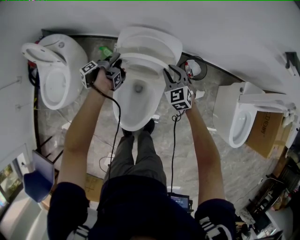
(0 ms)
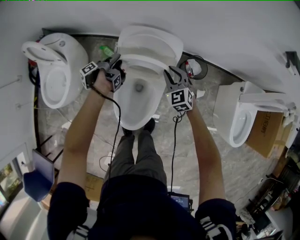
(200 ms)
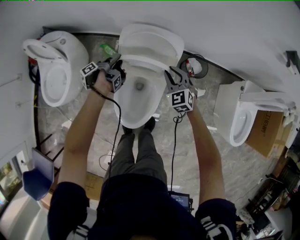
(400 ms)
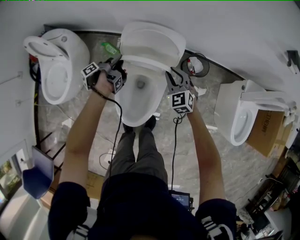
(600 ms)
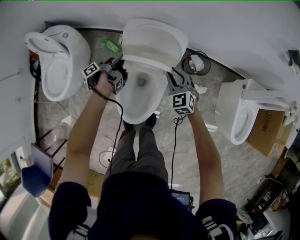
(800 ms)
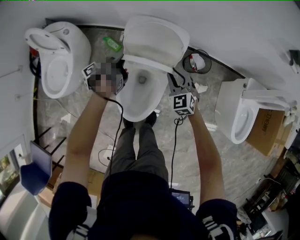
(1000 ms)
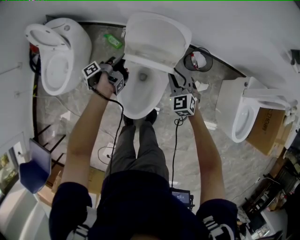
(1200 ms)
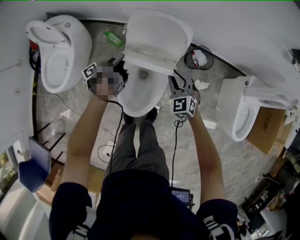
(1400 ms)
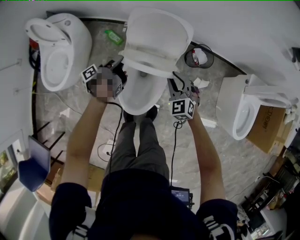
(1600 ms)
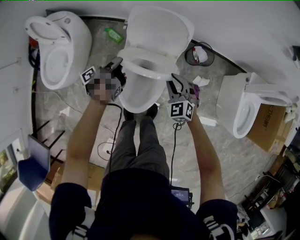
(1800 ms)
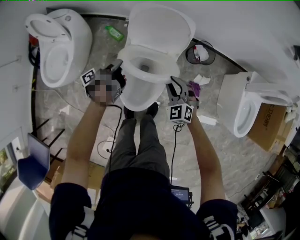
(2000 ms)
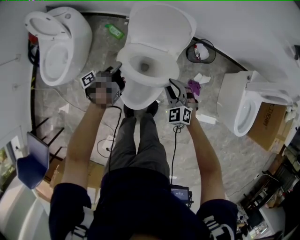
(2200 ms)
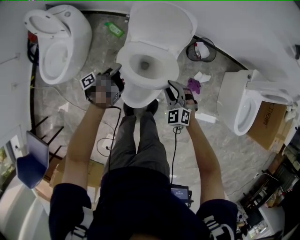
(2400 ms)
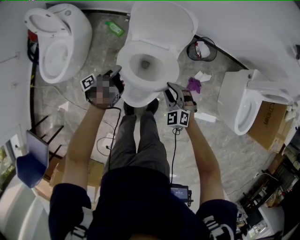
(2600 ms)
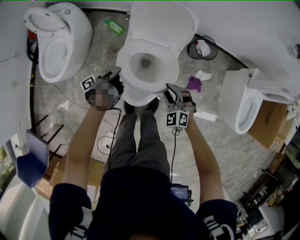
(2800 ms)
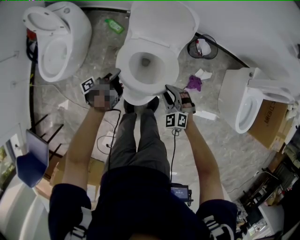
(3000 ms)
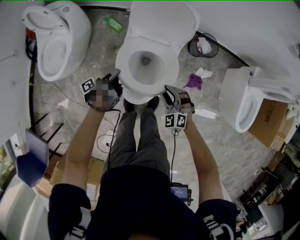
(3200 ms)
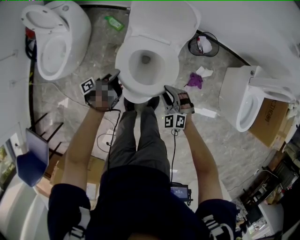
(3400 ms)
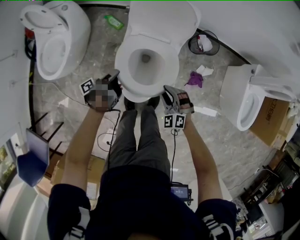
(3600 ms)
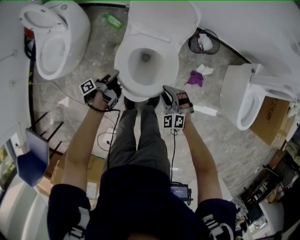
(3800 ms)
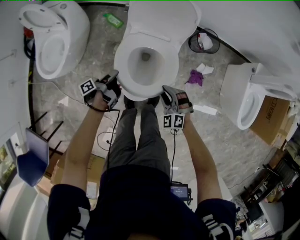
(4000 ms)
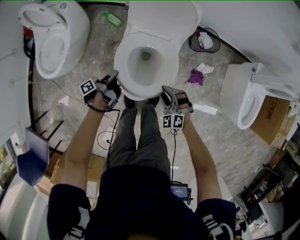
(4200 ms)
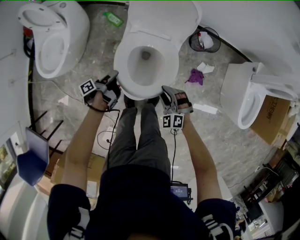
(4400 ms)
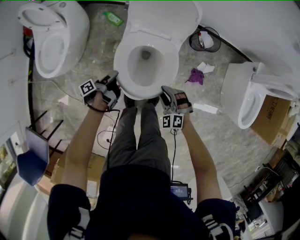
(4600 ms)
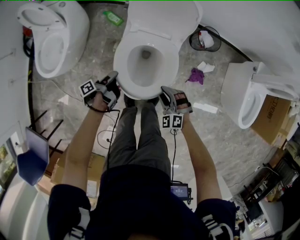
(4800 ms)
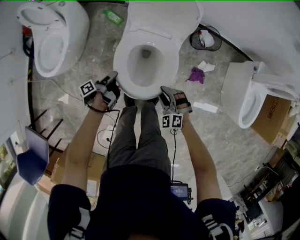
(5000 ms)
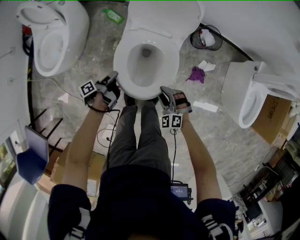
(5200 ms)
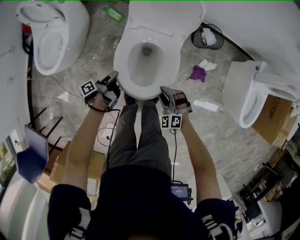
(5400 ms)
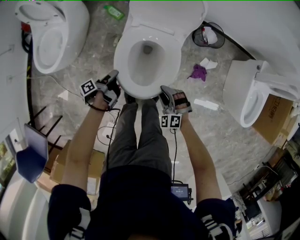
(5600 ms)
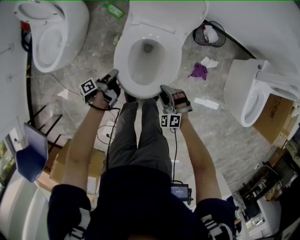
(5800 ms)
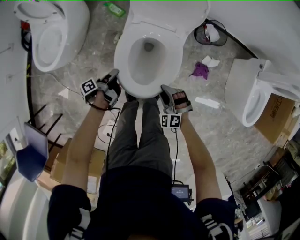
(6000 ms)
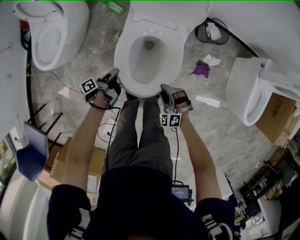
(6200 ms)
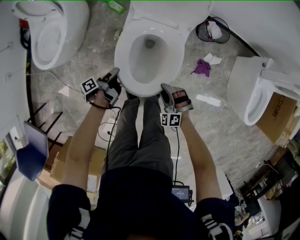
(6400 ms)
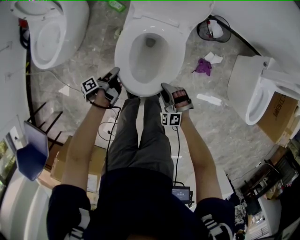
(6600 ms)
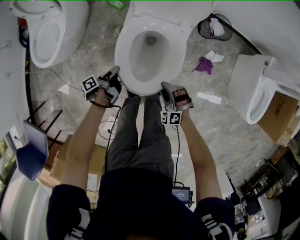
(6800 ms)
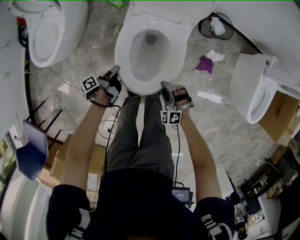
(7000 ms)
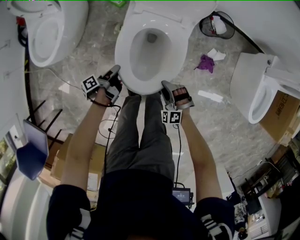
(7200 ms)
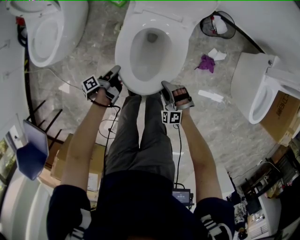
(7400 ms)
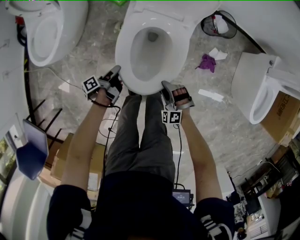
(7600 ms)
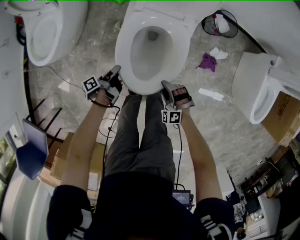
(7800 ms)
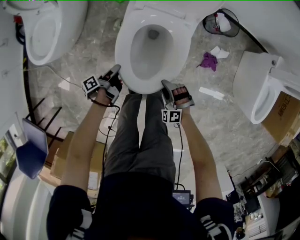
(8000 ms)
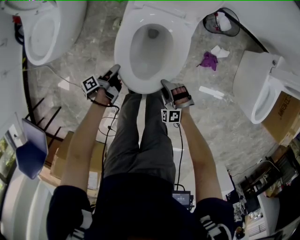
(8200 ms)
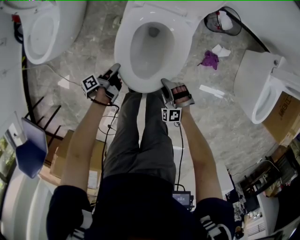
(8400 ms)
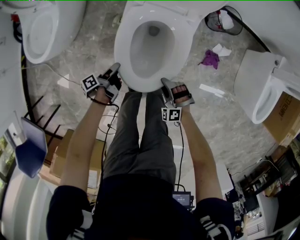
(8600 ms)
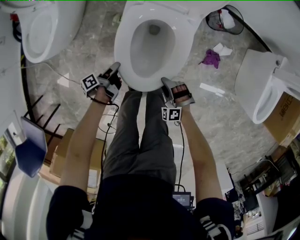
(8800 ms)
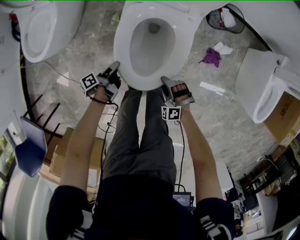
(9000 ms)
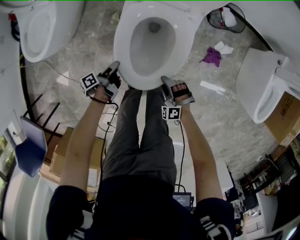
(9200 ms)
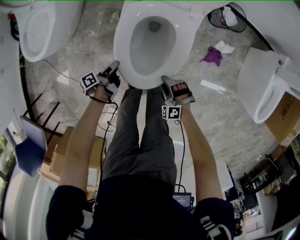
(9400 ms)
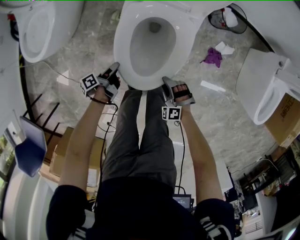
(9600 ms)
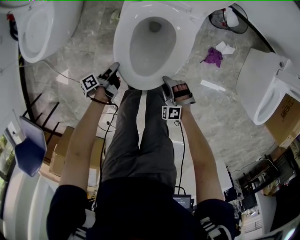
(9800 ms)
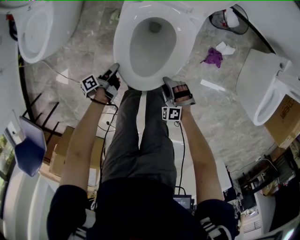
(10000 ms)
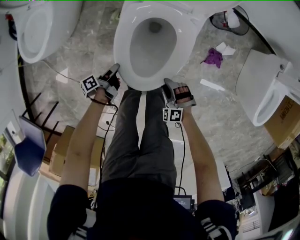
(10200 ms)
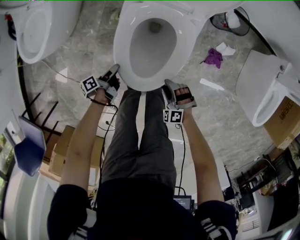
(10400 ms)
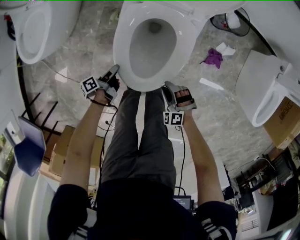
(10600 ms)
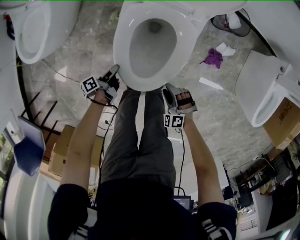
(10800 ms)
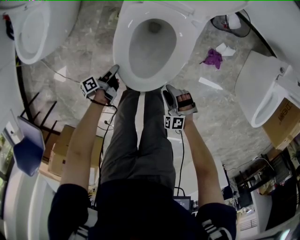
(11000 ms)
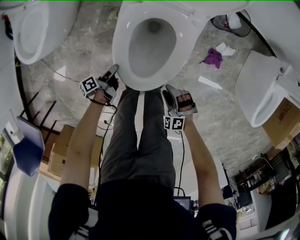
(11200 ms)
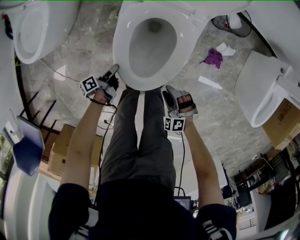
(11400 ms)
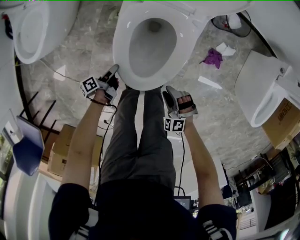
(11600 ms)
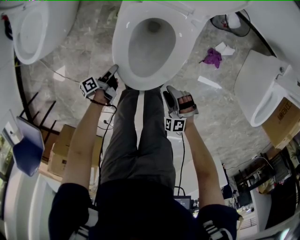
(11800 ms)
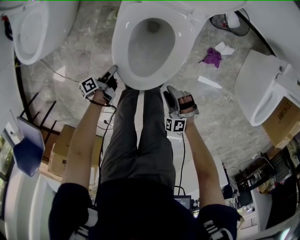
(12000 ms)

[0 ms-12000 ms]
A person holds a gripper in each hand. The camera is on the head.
0 ms to 1600 ms: The right gripper changes place by roughly 15 cm.
1600 ms to 3000 ms: The right gripper moves approximately 15 cm.
3000 ms to 4400 ms: The right gripper moves about 5 cm.
4400 ms to 6000 ms: The right gripper moves downward, approximately 5 cm.
6000 ms to 7600 ms: The right gripper heads downward, covering some 10 cm.
7600 ms to 9000 ms: The right gripper travels downward by roughly 5 cm.

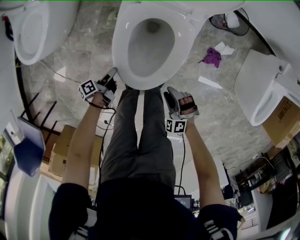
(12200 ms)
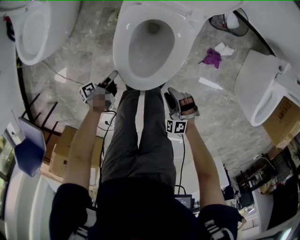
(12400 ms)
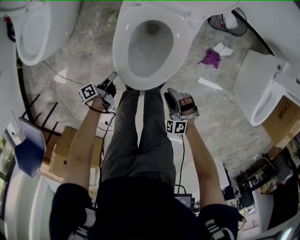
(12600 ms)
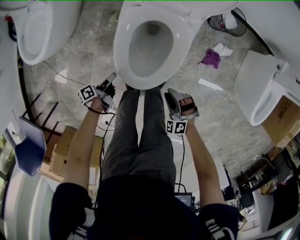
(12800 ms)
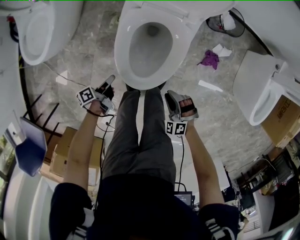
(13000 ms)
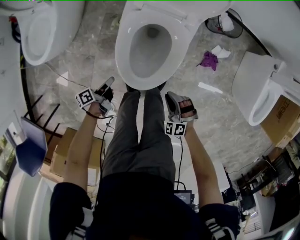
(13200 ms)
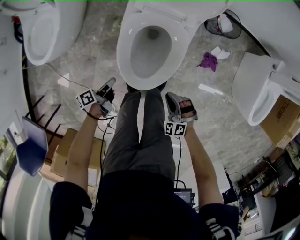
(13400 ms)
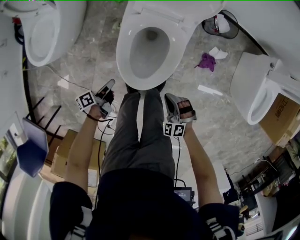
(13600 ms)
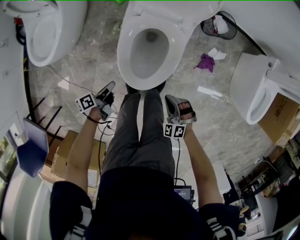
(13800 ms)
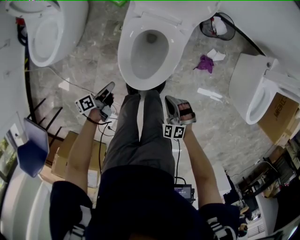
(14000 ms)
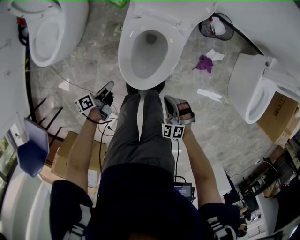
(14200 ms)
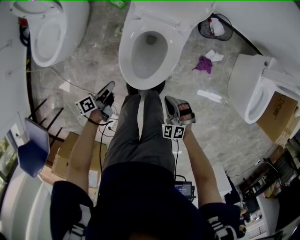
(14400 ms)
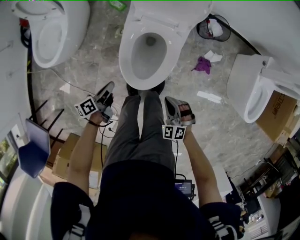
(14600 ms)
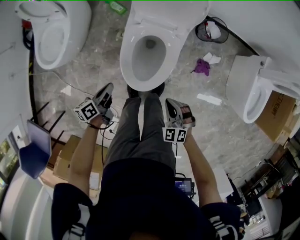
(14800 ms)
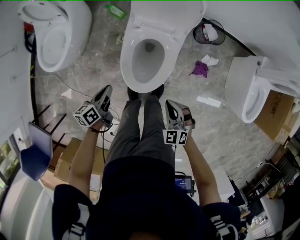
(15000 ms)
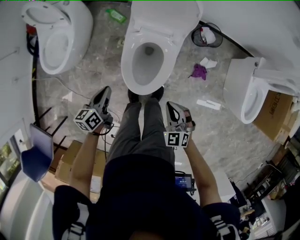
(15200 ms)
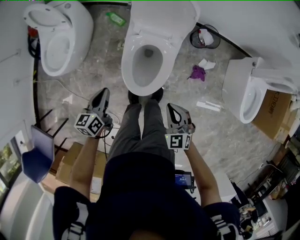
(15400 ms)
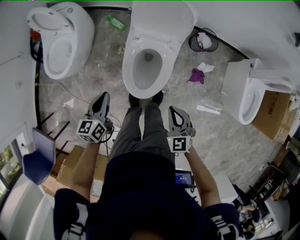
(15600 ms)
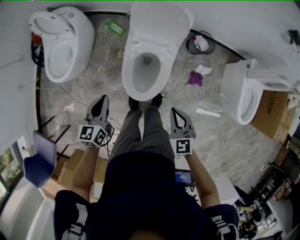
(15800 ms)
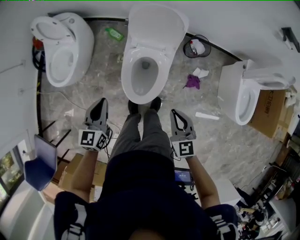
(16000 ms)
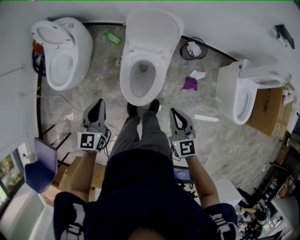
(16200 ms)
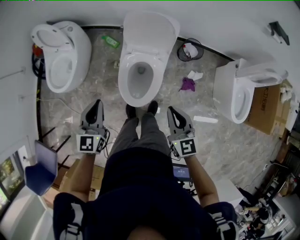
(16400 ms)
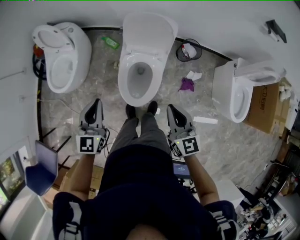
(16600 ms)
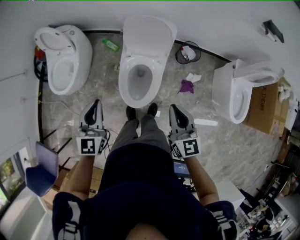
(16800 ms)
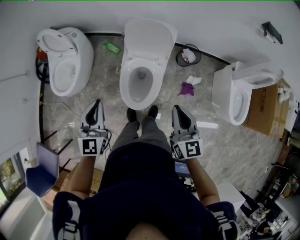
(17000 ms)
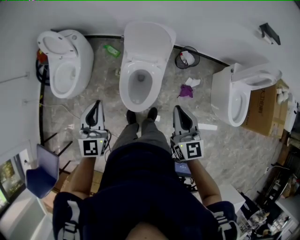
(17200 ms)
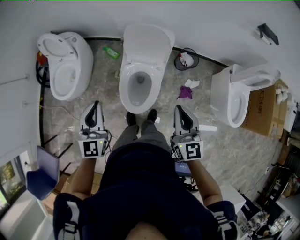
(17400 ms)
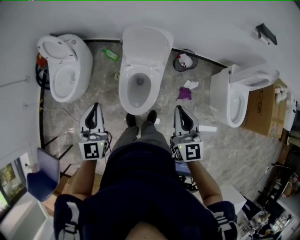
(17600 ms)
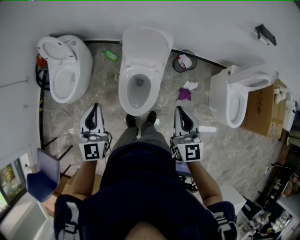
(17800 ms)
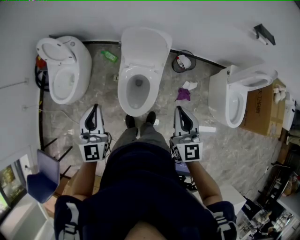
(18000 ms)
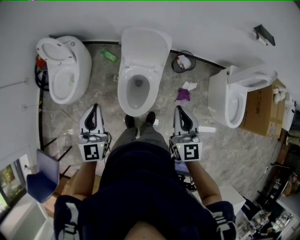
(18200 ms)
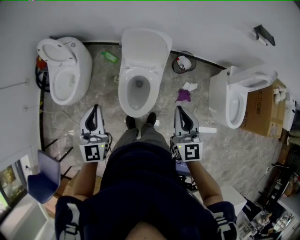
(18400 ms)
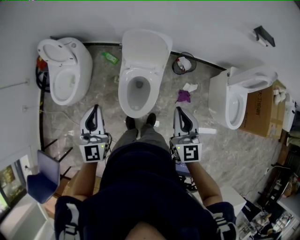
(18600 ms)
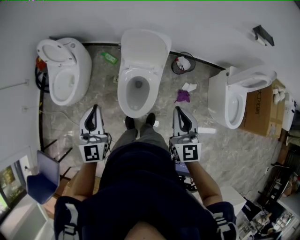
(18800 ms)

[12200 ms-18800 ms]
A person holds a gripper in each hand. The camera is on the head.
12200 ms to 13800 ms: The right gripper travels upward by roughly 10 cm, and closes up.
13800 ms to 15400 ms: The right gripper travels upward by about 20 cm, and swivels some 30 degrees.
15400 ms to 17200 ms: The right gripper heads upward, covering some 30 cm, and rotates about 40 degrees.

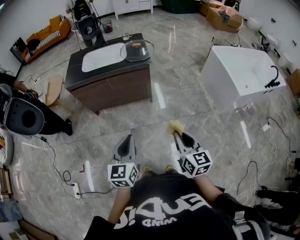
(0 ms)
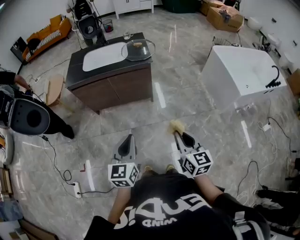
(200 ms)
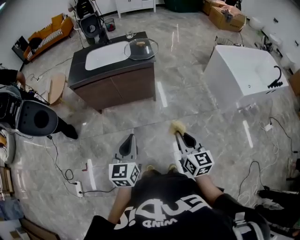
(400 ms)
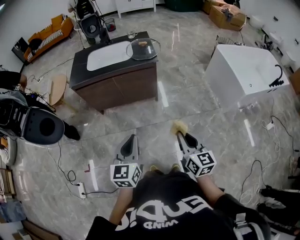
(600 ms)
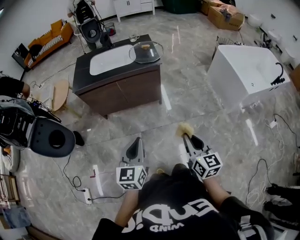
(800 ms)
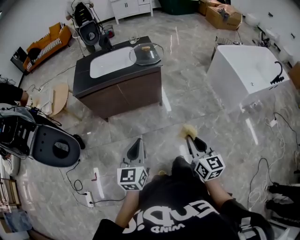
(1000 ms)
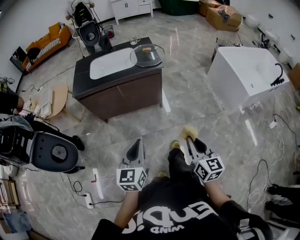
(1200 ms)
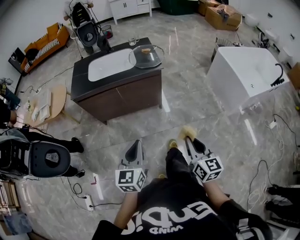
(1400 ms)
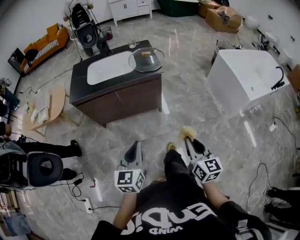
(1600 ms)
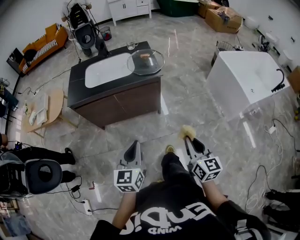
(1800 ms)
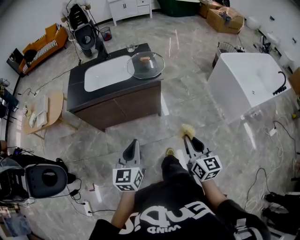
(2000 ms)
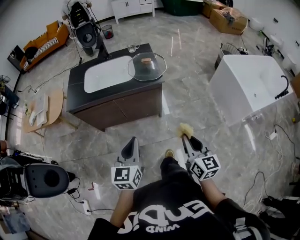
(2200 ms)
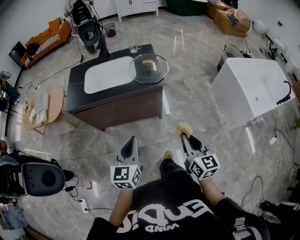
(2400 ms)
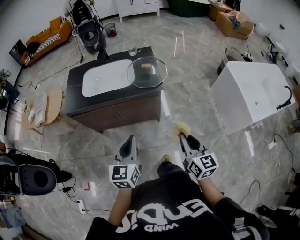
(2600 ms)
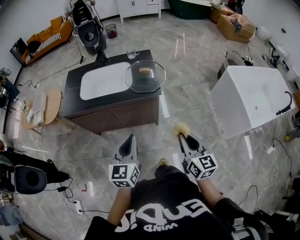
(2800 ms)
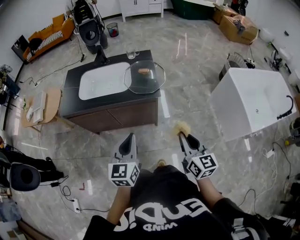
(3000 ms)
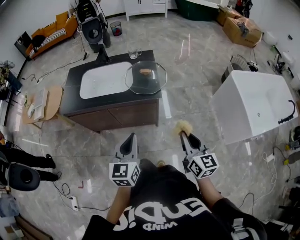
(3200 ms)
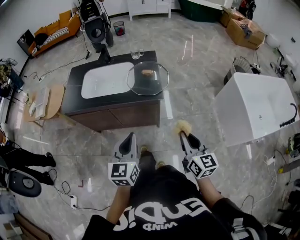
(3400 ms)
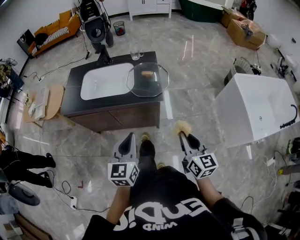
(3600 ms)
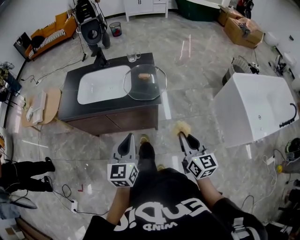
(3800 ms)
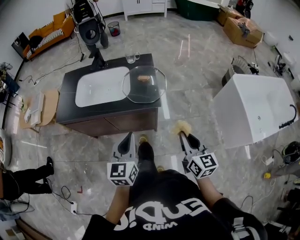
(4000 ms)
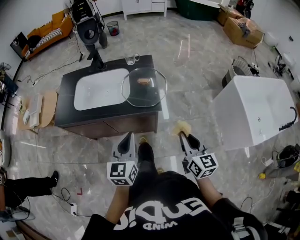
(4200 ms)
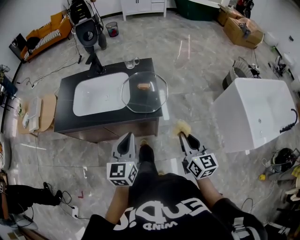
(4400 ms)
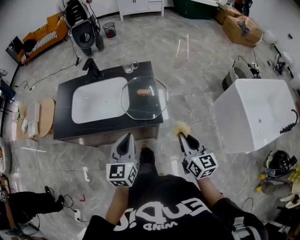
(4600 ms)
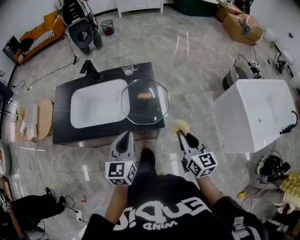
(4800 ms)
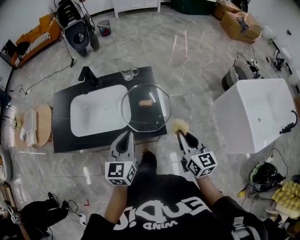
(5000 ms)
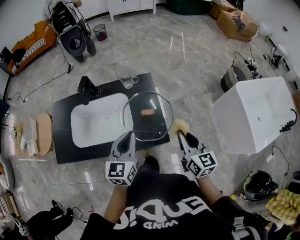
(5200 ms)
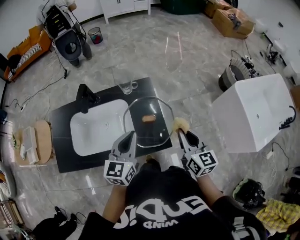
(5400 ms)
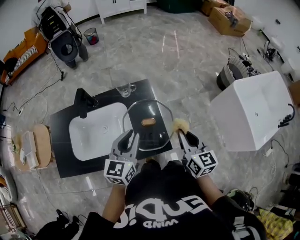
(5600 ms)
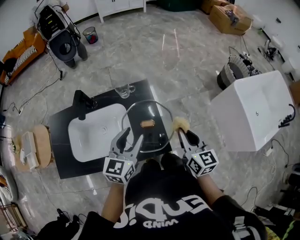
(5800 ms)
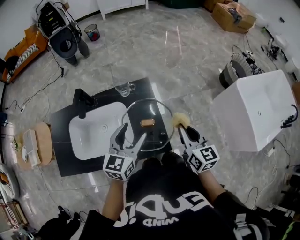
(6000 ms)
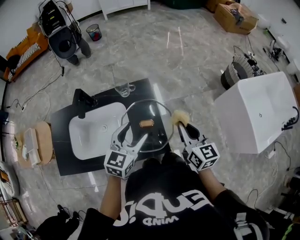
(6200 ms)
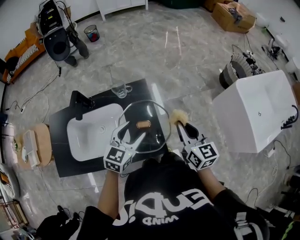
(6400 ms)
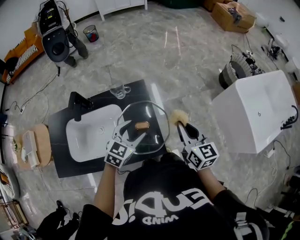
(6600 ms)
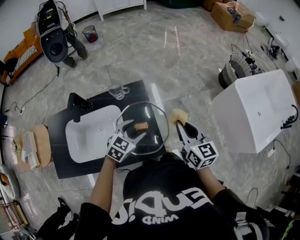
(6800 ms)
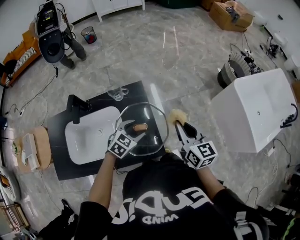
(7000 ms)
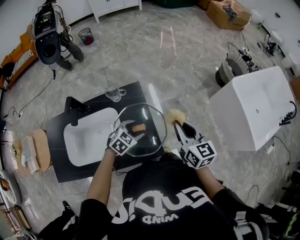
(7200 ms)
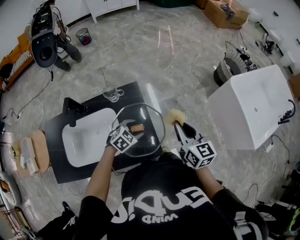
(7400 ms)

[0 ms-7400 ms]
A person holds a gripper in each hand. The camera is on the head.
0 ms to 1400 ms: Both grippers move to the left and forward, roughly 10 cm.
1400 ms to 3000 ms: Both grippers move forward, roughly 30 cm.
3000 ms to 4400 ms: The two grippers go roughly 15 cm forward.
4400 ms to 6000 ms: The two grippers go roughly 25 cm forward. The left gripper turns by about 20 degrees, and opens its fingers.
6000 ms to 7400 ms: The right gripper changes place by approximately 5 cm. Meanwhile the left gripper shifts about 20 cm downward, and points its fingers approximately 40 degrees further downward.
